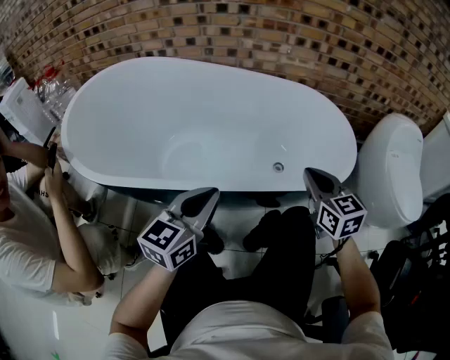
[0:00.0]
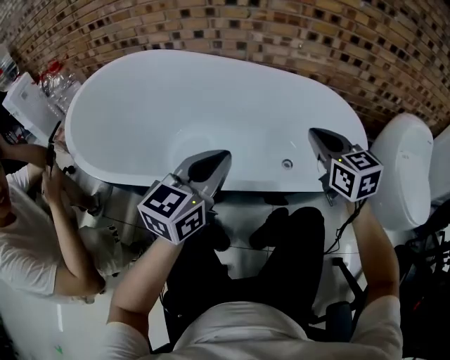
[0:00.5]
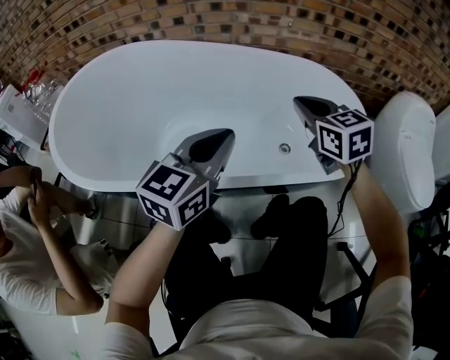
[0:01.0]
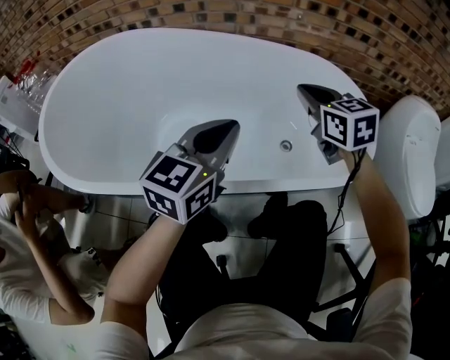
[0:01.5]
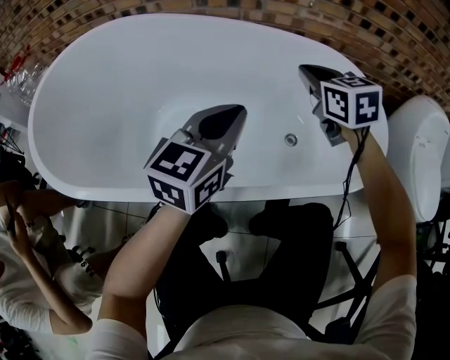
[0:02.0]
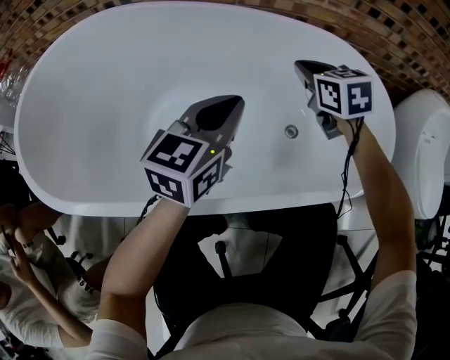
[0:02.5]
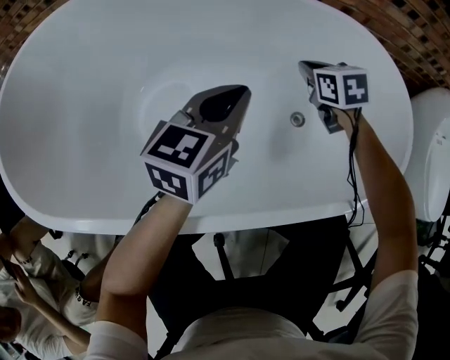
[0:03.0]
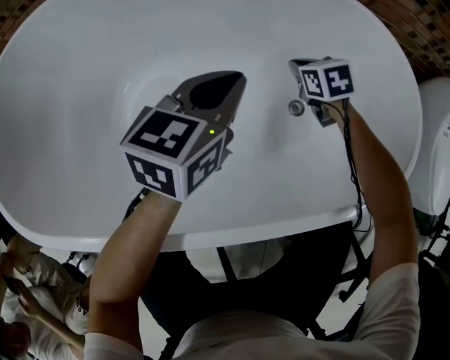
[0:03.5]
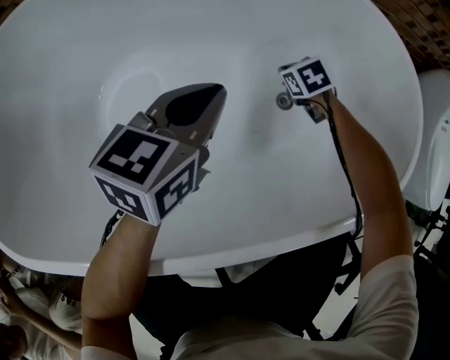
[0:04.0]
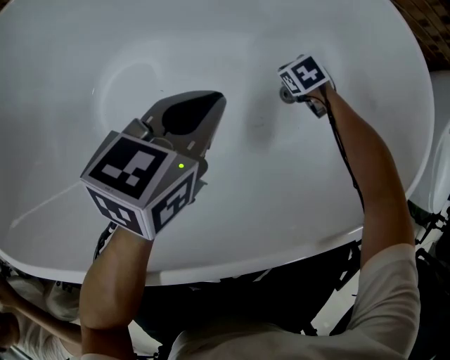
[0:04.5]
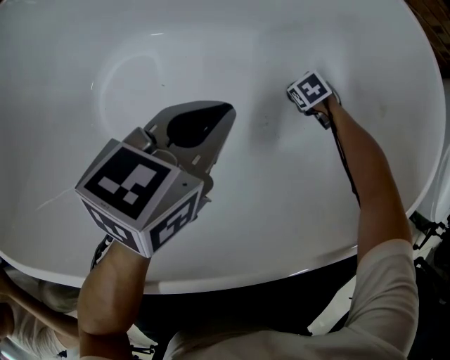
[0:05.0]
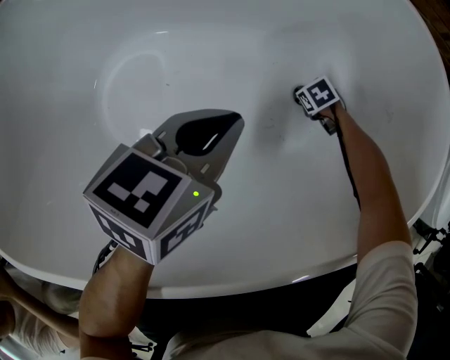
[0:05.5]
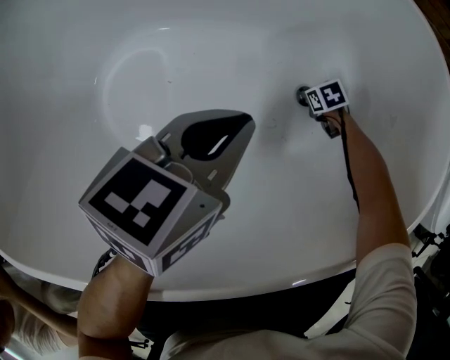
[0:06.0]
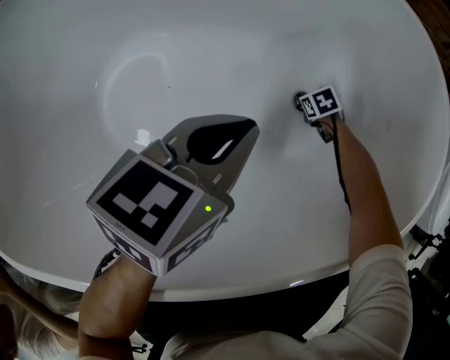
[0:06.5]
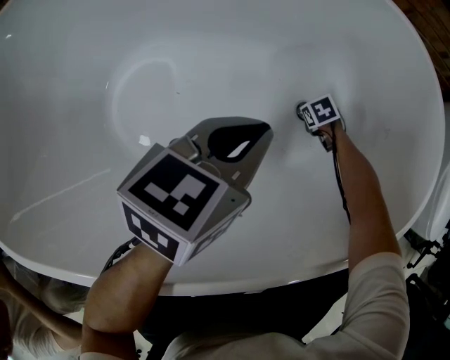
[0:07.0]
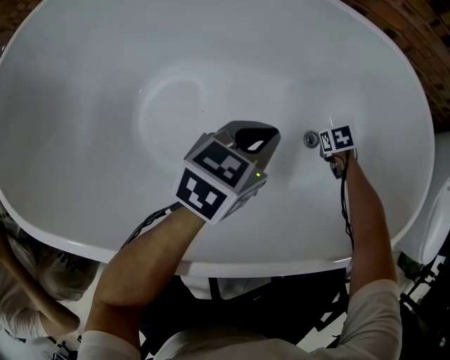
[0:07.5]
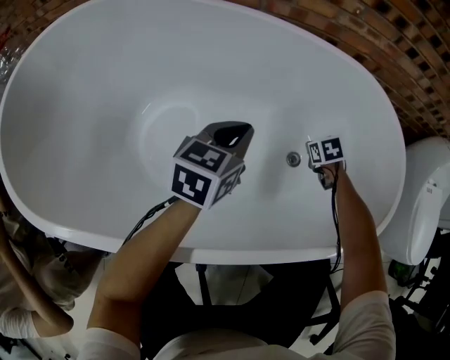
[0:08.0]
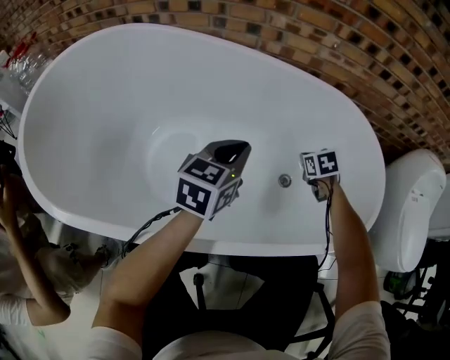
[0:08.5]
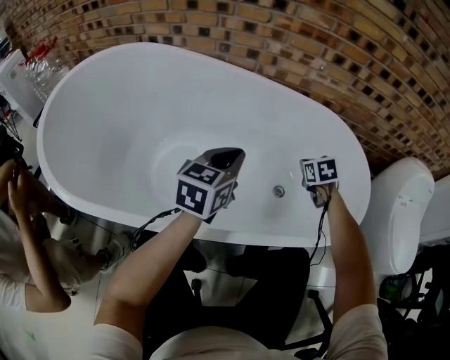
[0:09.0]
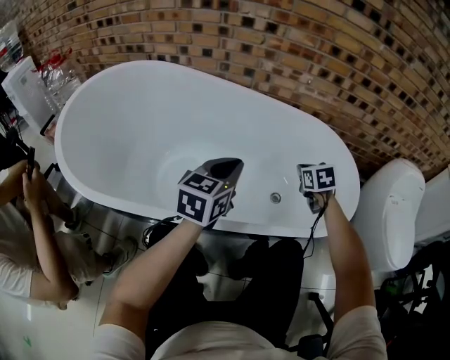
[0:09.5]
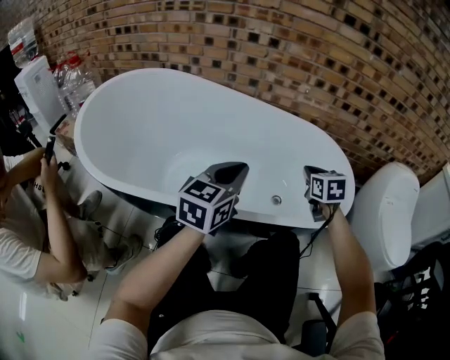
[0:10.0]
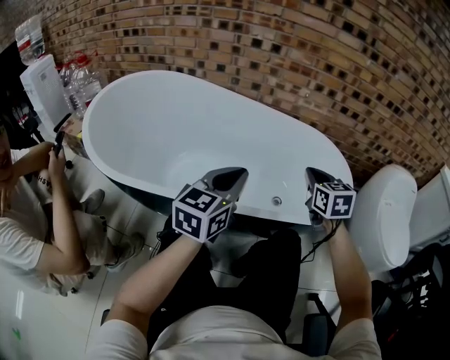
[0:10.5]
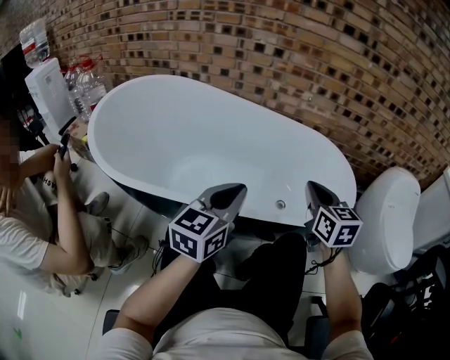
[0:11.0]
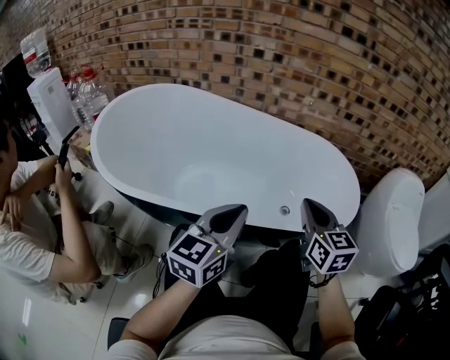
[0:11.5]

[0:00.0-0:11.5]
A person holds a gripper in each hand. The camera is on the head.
0:00.0 to 0:02.0: The two grippers go some 25 cm forward.
0:02.0 to 0:04.0: The left gripper shifts roughly 20 cm downward and forward, while the right gripper shifts roughly 40 cm downward, and angles its fingers downward, by some 40 degrees.
0:04.0 to 0:06.0: The left gripper shifts by about 5 cm; the right gripper moves downward, approximately 20 cm.
0:06.0 to 0:07.5: The right gripper is displaced upward by approximately 10 cm.
0:07.5 to 0:09.5: The right gripper goes about 35 cm upward, and angles its fingers upward, by roughly 30 degrees; the left gripper goes roughly 20 cm upward, and turns by some 20 degrees.
0:09.5 to 0:11.5: The right gripper moves backward and upward, approximately 30 cm, and tilts its fingers roughly 40 degrees upward; the left gripper goes about 20 cm backward.

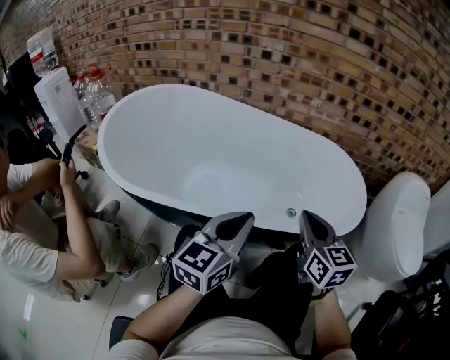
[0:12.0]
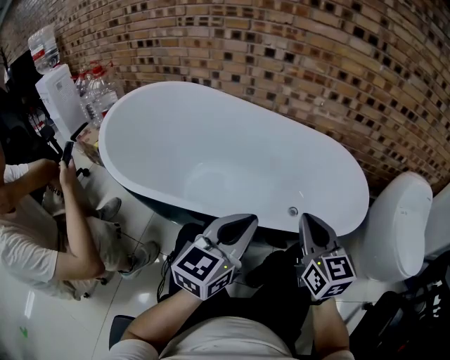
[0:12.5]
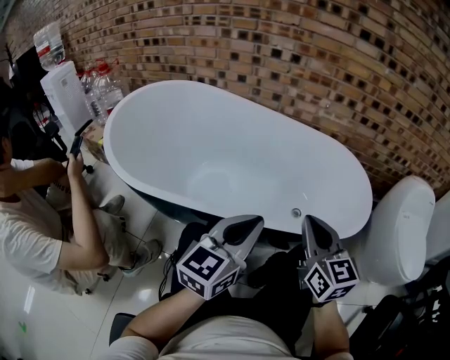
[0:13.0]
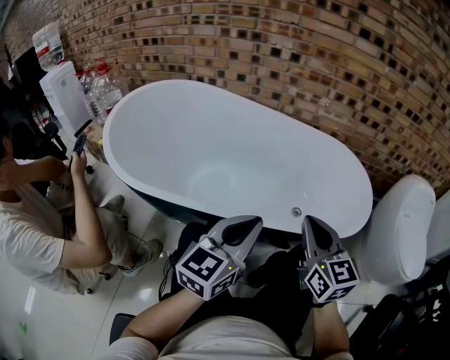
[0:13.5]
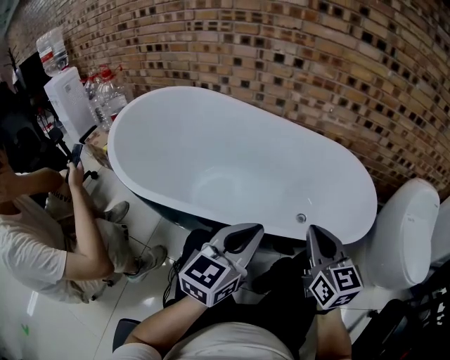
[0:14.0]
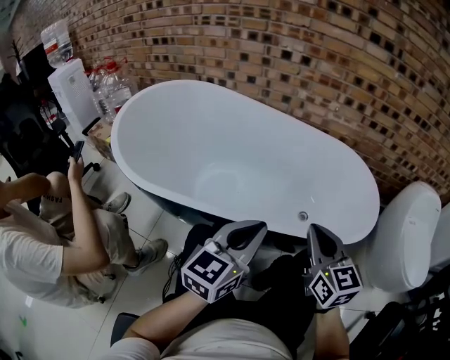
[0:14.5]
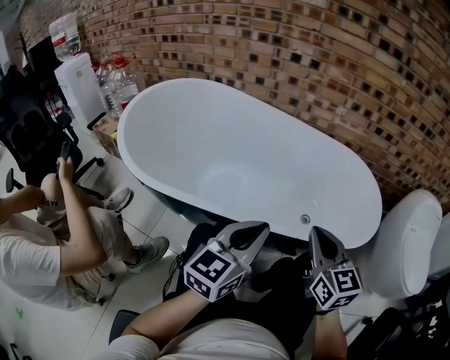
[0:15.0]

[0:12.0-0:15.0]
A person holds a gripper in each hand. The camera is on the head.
0:12.0 to 0:15.0: The grippers move only a little.

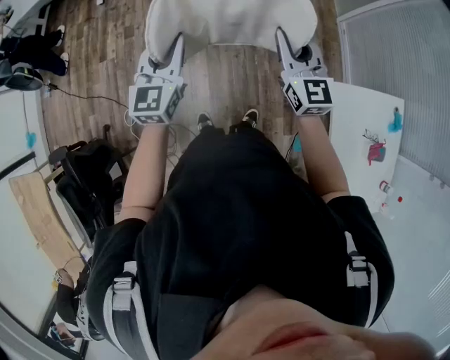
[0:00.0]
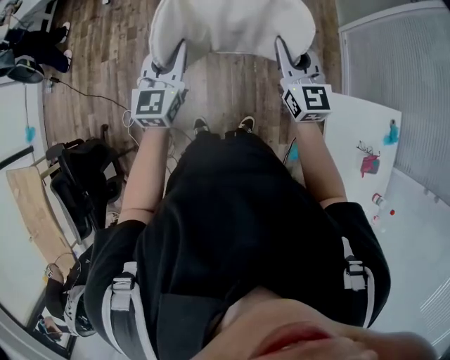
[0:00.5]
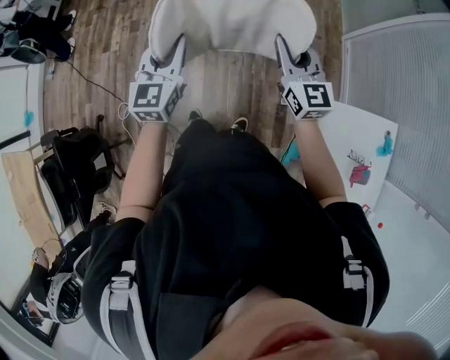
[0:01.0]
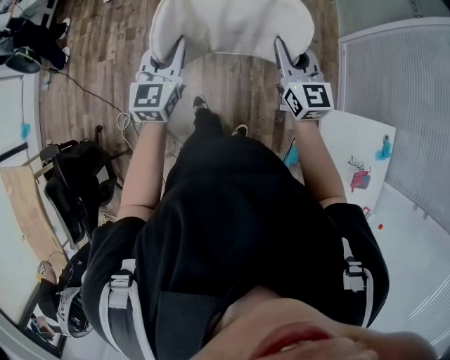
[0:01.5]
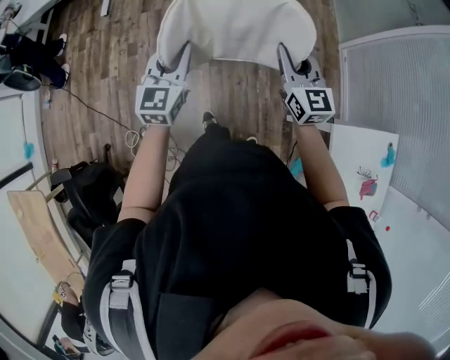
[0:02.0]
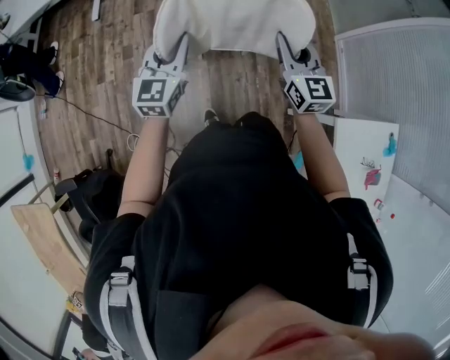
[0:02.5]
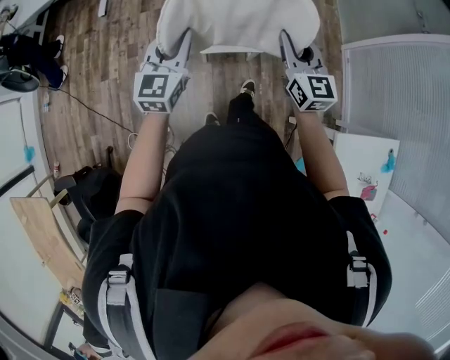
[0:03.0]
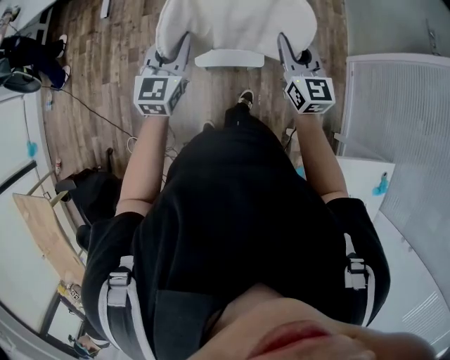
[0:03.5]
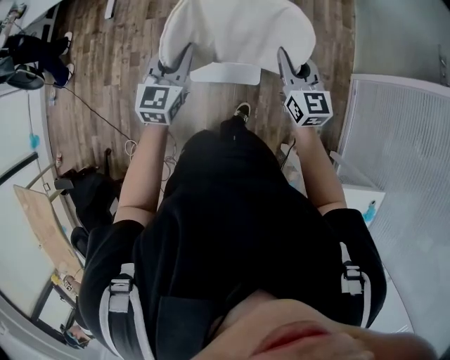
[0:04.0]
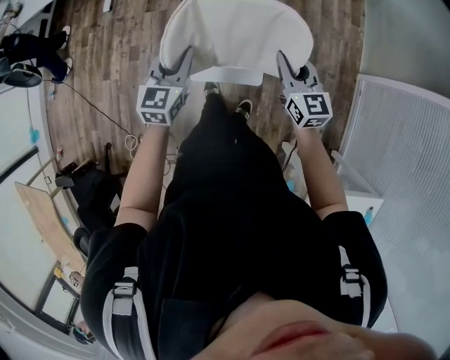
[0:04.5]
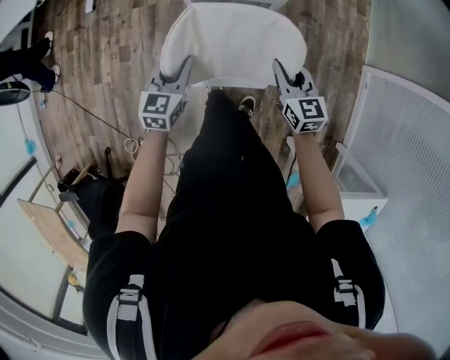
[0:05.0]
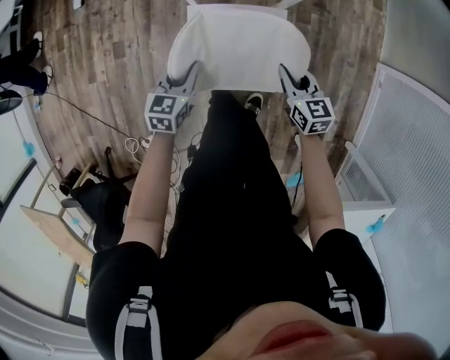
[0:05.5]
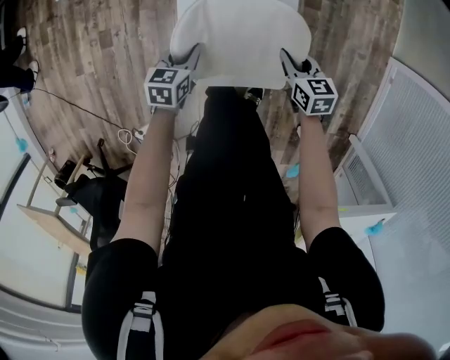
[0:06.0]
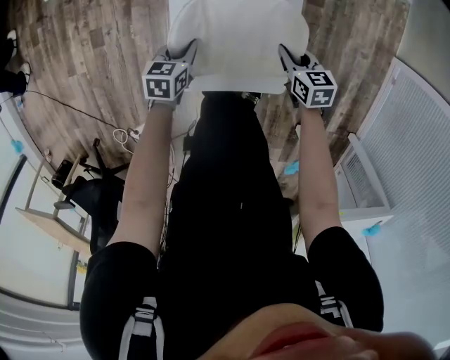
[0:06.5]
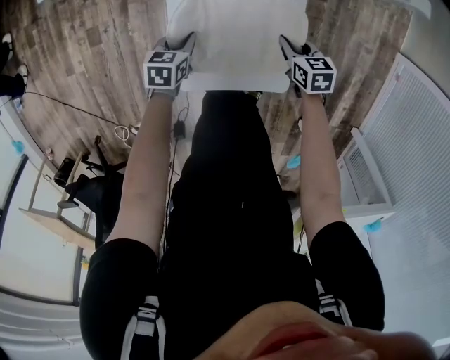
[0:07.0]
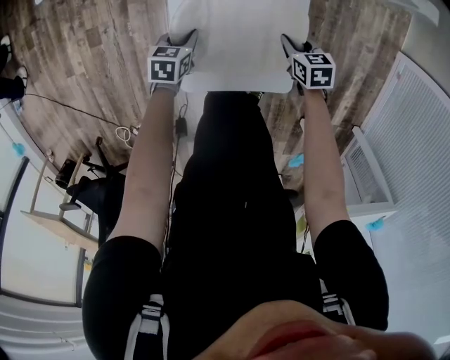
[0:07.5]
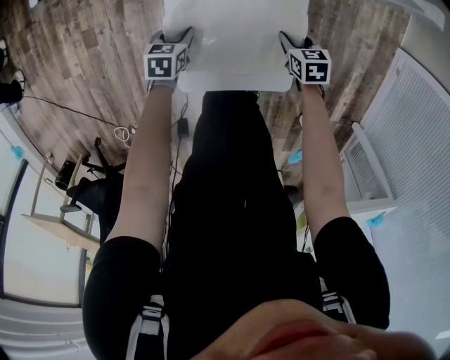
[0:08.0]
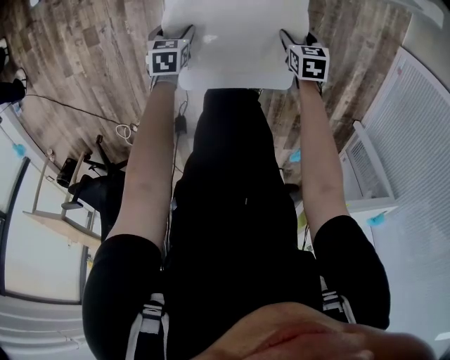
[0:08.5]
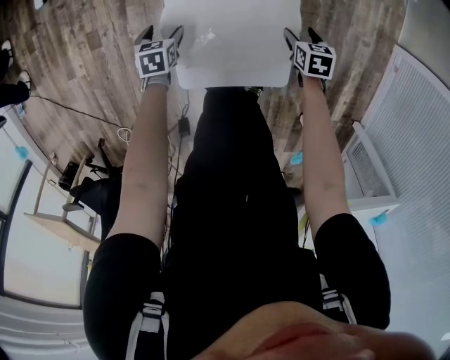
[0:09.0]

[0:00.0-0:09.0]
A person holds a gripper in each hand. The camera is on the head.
0:00.0 to 0:02.0: The two grippers go roughly 15 cm forward.
0:02.0 to 0:04.5: The grippers both shift forward by some 35 cm.
0:04.5 to 0:07.0: Both grippers travel together downward, approximately 60 cm. The left gripper tilts its fingers some 30 degrees downward, while the right gripper tips its fingers downward by about 40 degrees.
0:07.0 to 0:09.0: The right gripper travels to the right by approximately 5 cm, and opens its fingers. Meanwhile the left gripper shifts approximately 5 cm to the left, and opens up.

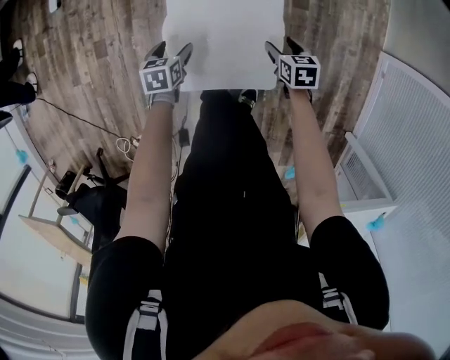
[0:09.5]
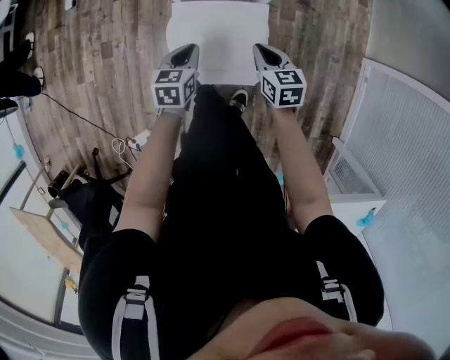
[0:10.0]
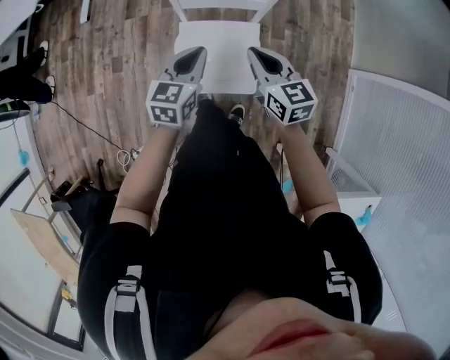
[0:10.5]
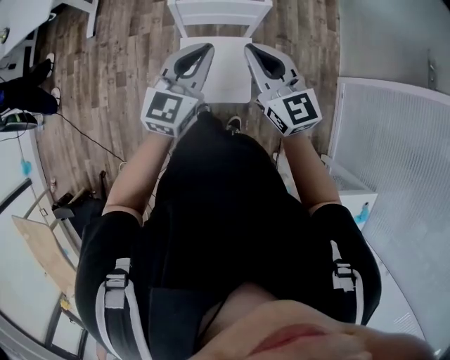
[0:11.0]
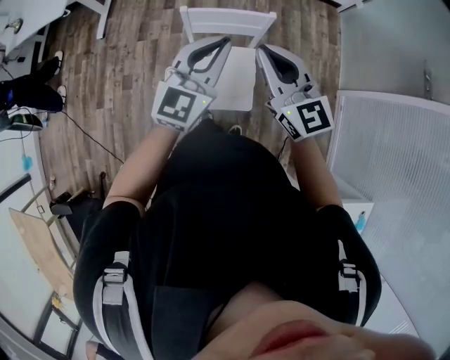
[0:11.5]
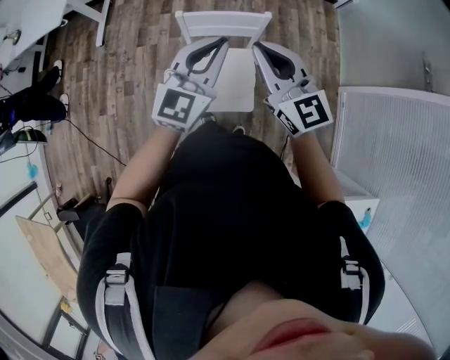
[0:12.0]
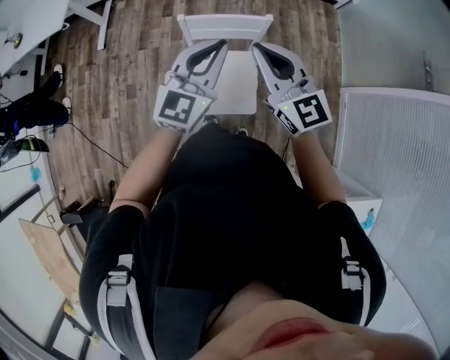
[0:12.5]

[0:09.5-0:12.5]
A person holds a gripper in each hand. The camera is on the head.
0:09.5 to 0:11.0: The two grippers go about 60 cm upward. The left gripper tilts its fingers about 50 degrees upward, and closes; the right gripper tips its fingers upward by about 50 degrees, and closes its fingers.
0:11.0 to 0:12.5: The grippers both shift upward by some 10 cm.
